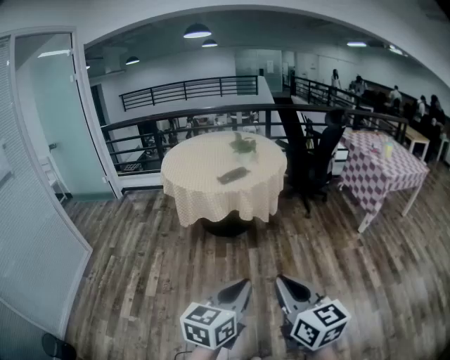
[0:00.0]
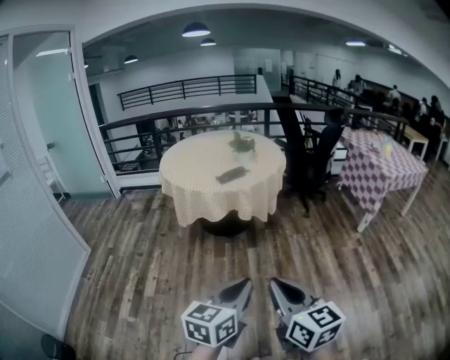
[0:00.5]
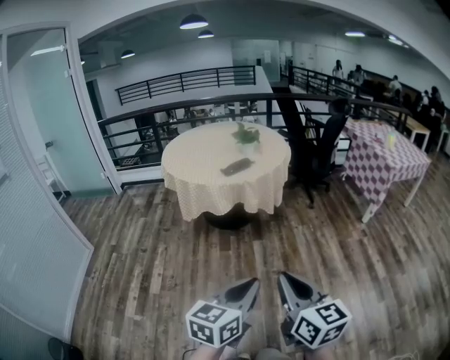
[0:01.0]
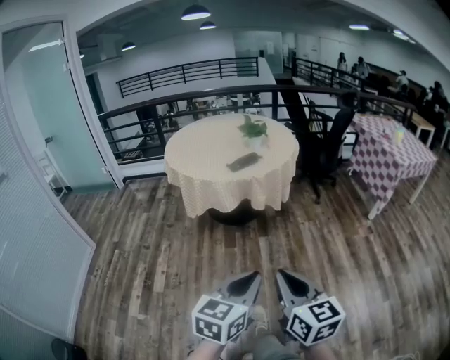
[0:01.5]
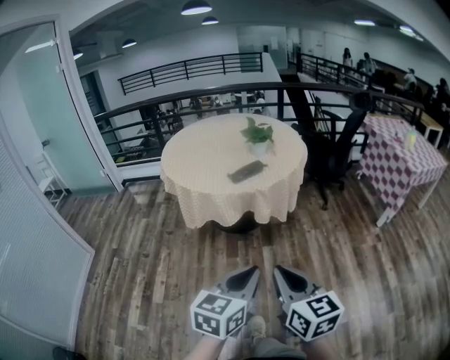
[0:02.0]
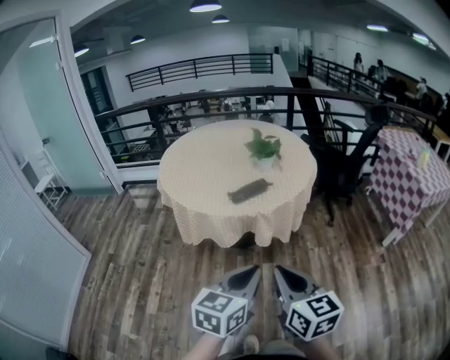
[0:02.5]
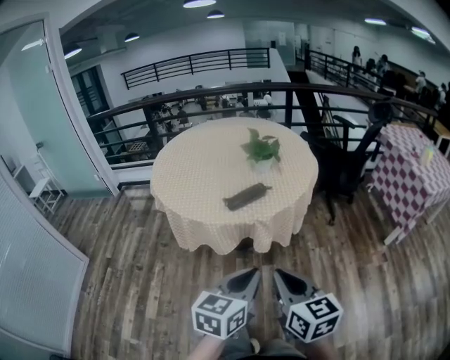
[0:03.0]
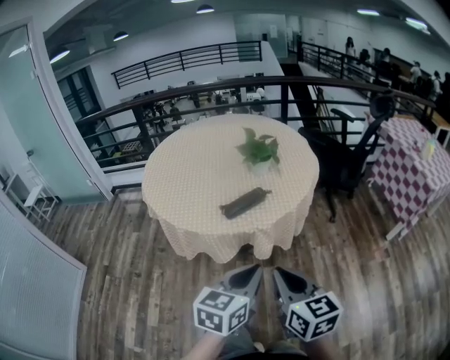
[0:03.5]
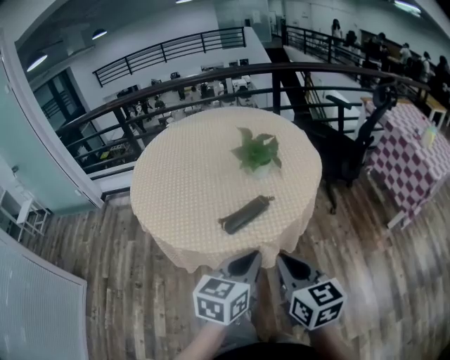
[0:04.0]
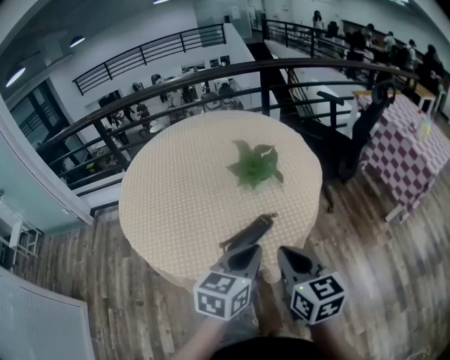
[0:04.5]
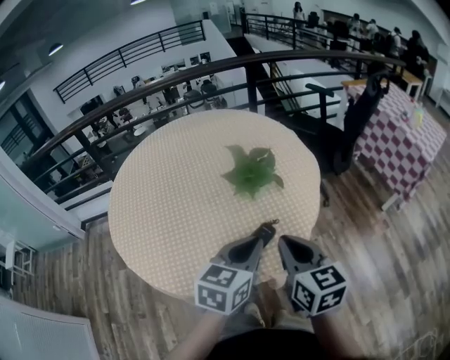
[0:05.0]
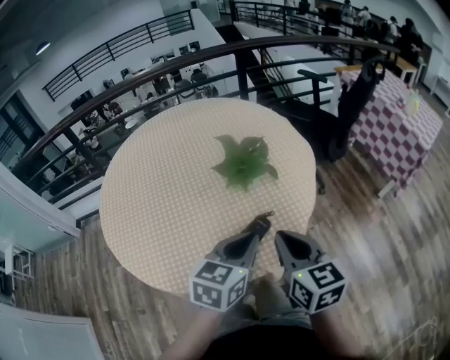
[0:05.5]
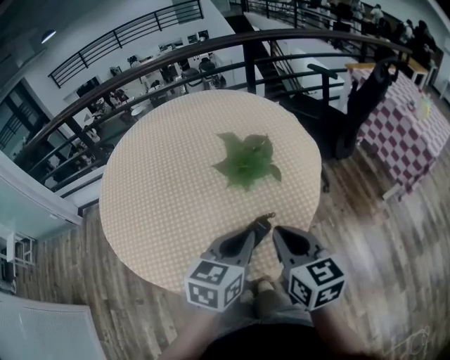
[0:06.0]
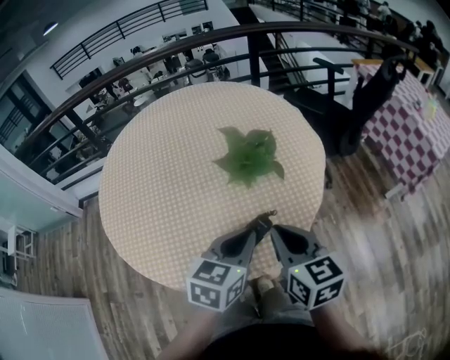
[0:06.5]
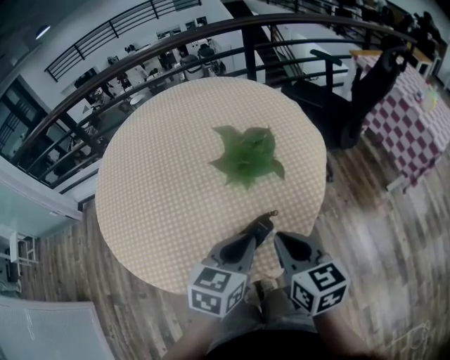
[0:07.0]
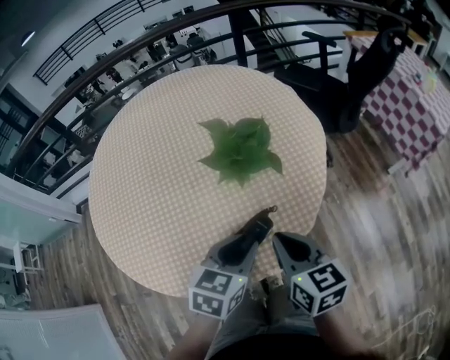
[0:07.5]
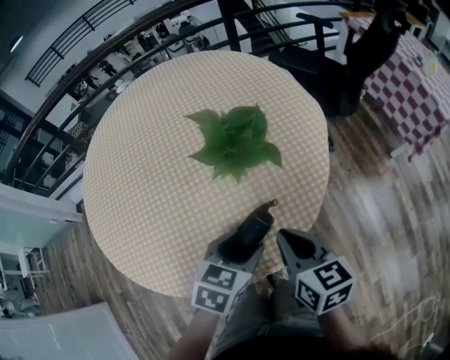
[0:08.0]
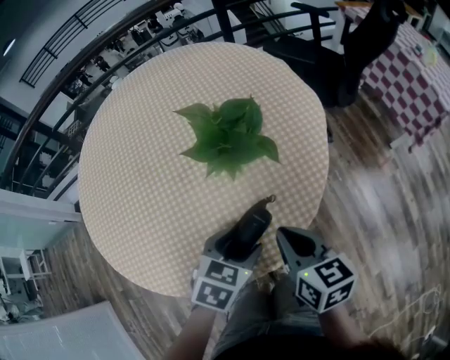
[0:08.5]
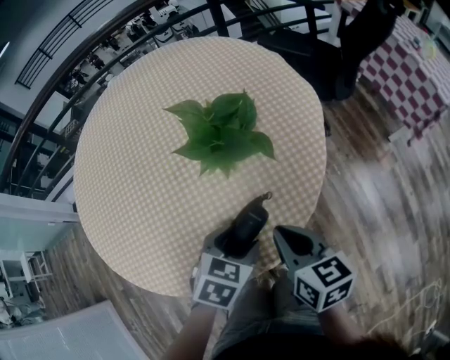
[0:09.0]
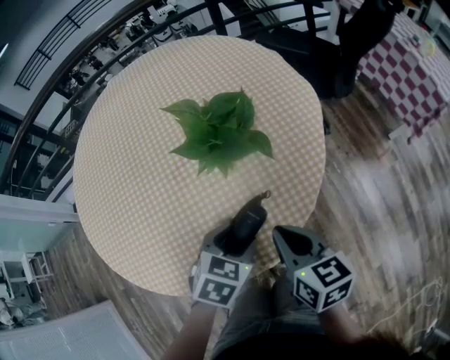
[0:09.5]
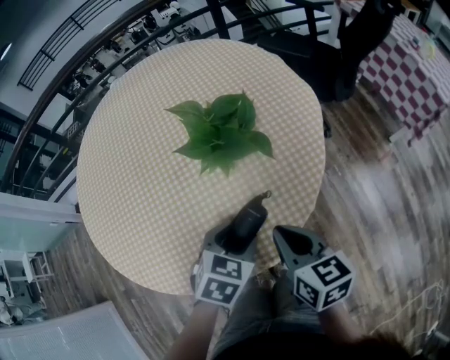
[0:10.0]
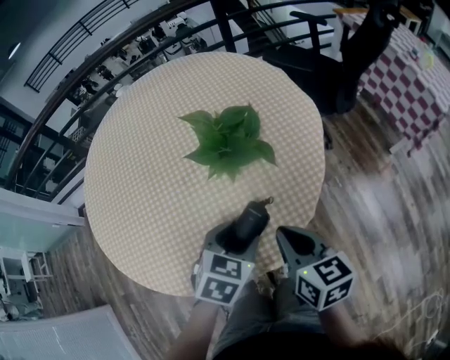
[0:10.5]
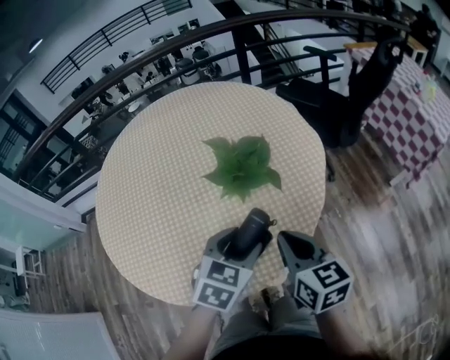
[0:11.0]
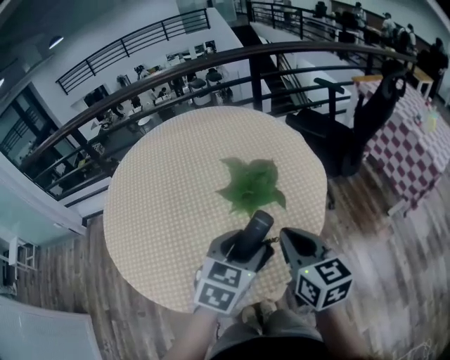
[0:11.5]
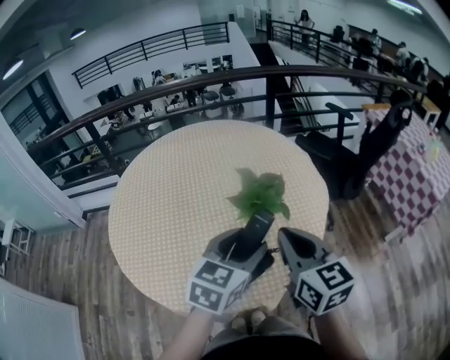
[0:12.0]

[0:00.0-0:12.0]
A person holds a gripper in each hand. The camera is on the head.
0:00.0 to 0:02.0: The left gripper is displaced forward by some 20 cm; the right gripper shifts roughly 25 cm forward and to the left.
0:02.0 to 0:04.0: Both grippers move forward, some 40 cm.
0:04.0 to 0:06.0: Both grippers travel together forward, roughly 20 cm.
0:06.0 to 0:08.0: The grippers both shift downward by some 10 cm. The left gripper changes its angle by about 20 degrees, and opens.
0:08.0 to 0:10.0: There are only small adjustments of the grippers.
0:10.0 to 0:12.0: Both grippers travel together upward, about 20 cm. The left gripper points its fingers roughly 30 degrees further upward; the right gripper changes its angle by some 30 degrees.

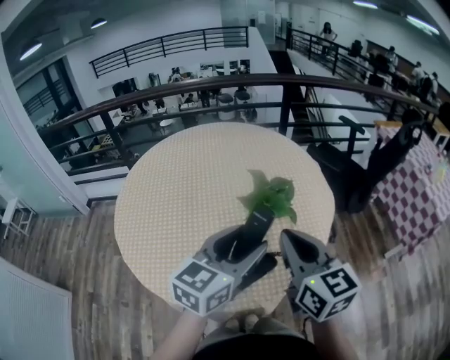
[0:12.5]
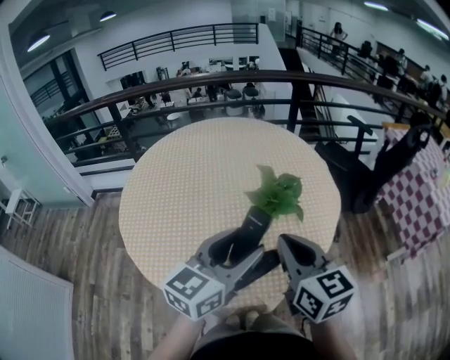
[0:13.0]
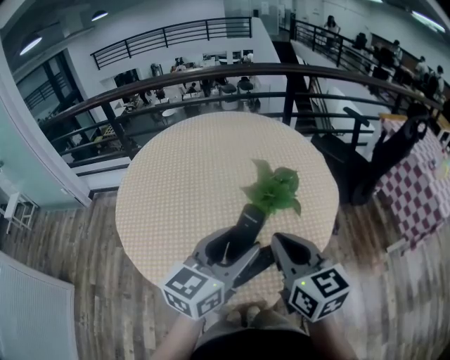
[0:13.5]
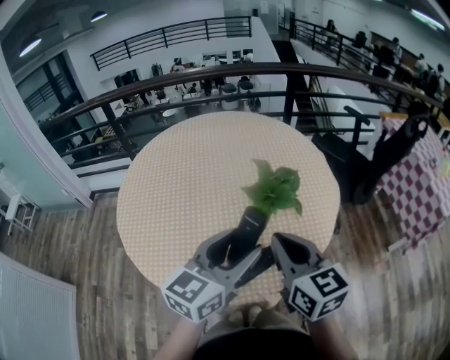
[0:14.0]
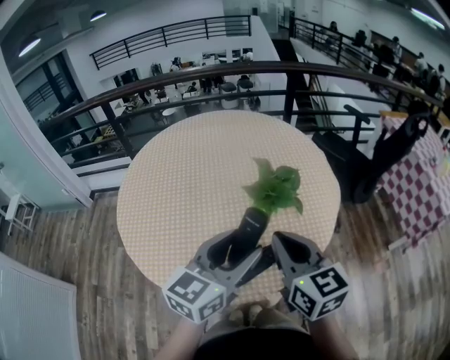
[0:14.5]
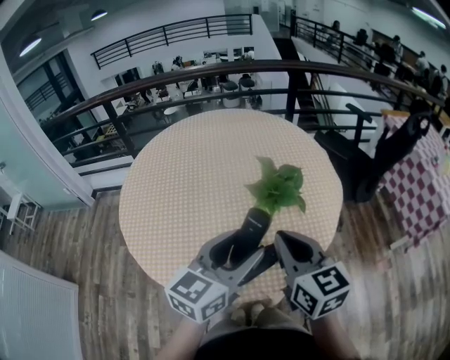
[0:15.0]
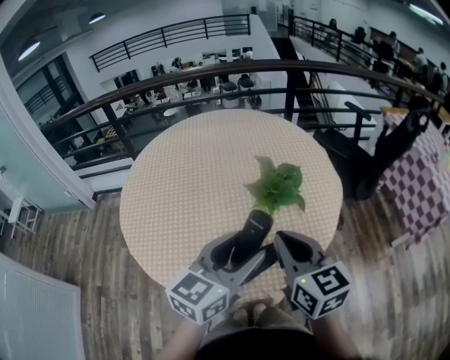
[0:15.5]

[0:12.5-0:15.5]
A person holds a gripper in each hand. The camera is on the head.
0:12.5 to 0:14.0: The grippers move only a little.
0:14.0 to 0:15.5: Both grippers stay put.

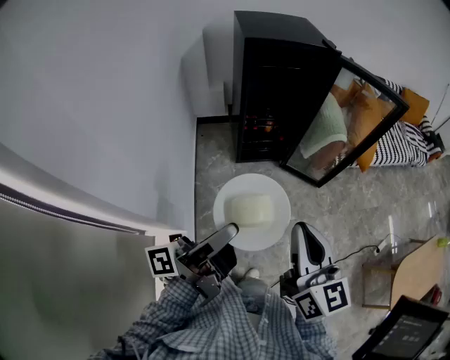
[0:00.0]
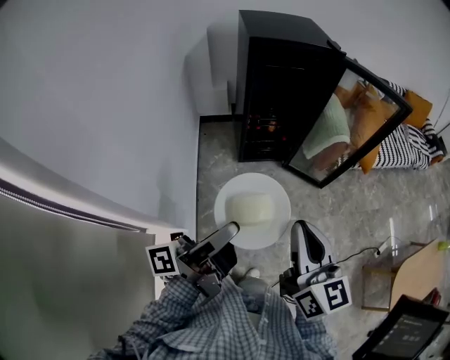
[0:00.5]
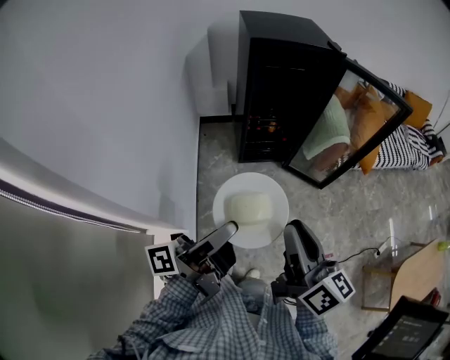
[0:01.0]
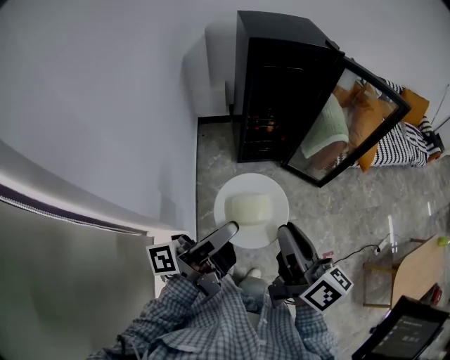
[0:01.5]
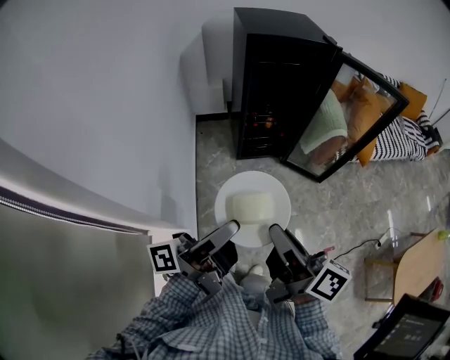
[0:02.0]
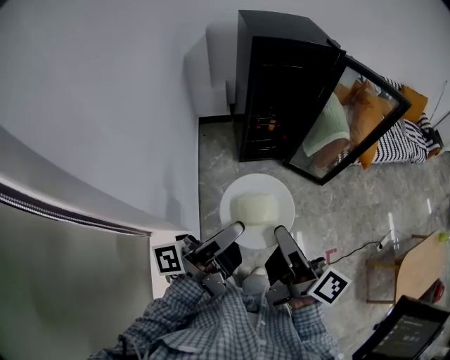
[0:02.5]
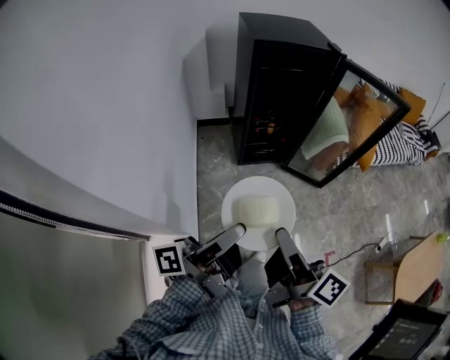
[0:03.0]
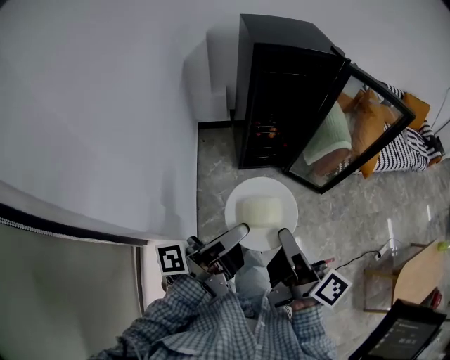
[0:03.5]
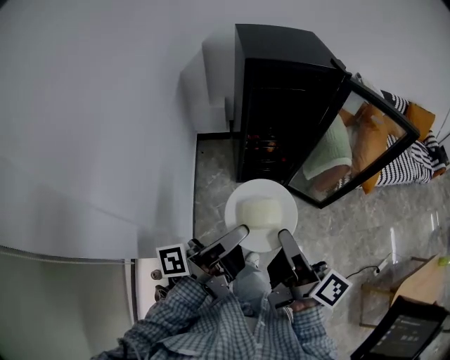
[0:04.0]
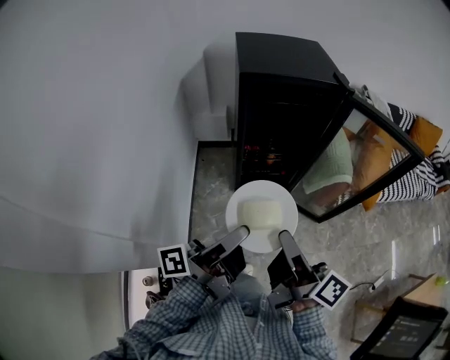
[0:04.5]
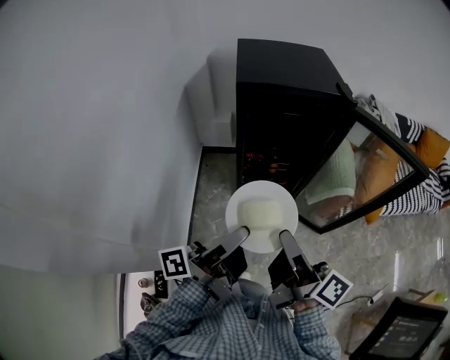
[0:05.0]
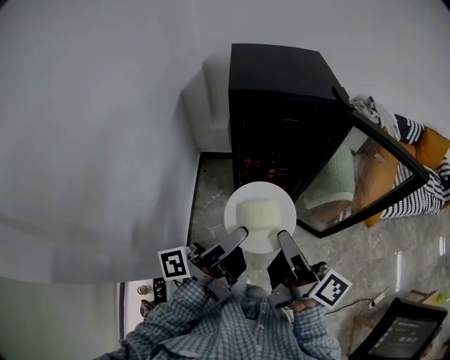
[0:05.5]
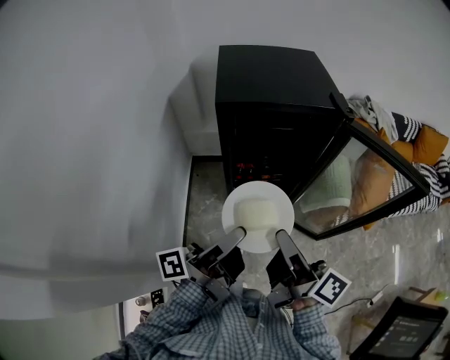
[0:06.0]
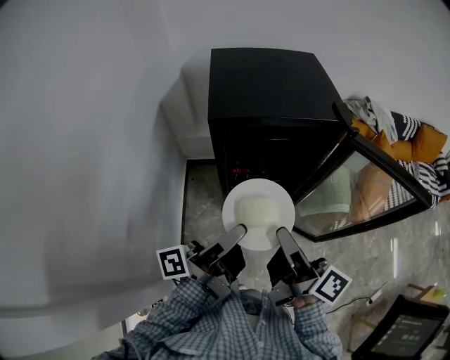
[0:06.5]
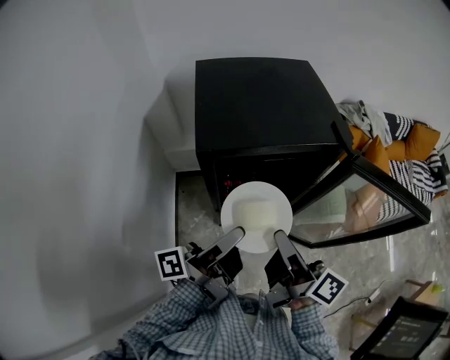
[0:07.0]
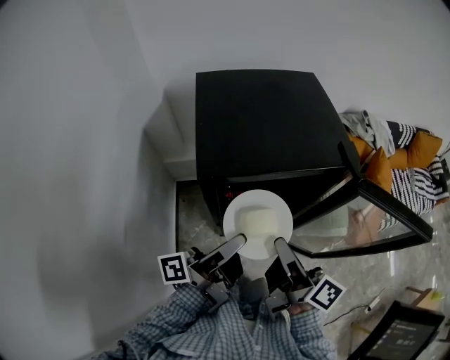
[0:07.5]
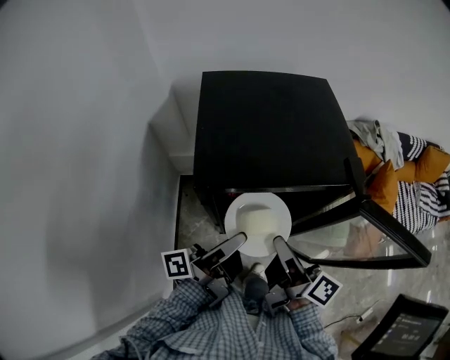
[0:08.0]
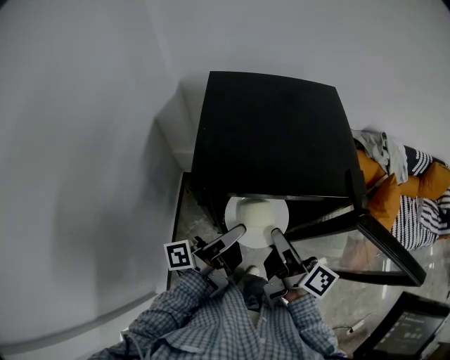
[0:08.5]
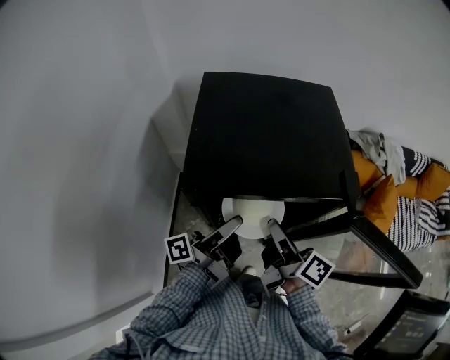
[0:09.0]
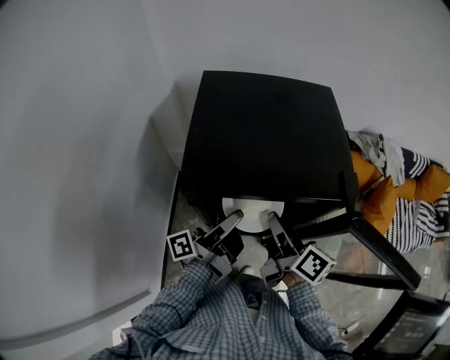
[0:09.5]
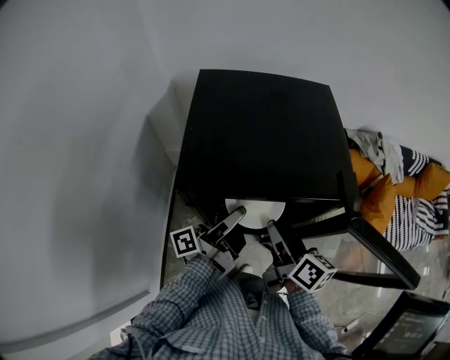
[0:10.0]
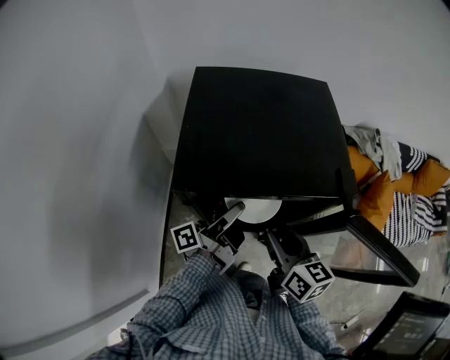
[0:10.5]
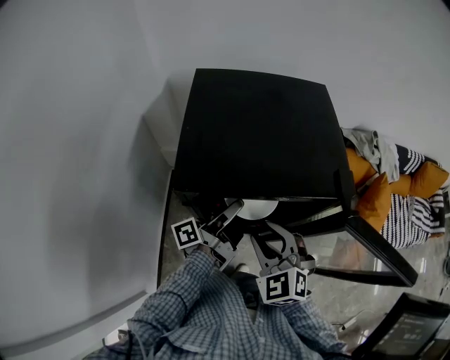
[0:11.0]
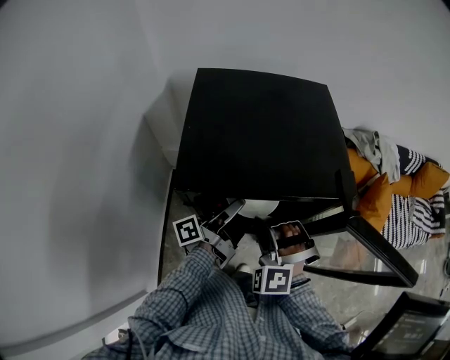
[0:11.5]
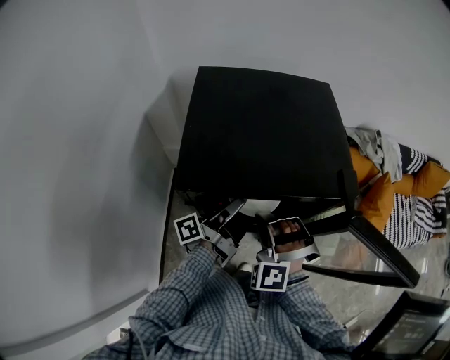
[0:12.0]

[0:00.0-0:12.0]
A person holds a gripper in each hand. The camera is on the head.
0:00.0 to 0:02.0: The right gripper shifts by approximately 5 cm, and twists about 50 degrees clockwise, seen from behind.
0:02.0 to 0:04.0: The right gripper changes place by roughly 10 cm.
0:04.0 to 0:06.0: The right gripper moves roughly 20 cm.
0:06.0 to 0:08.0: The right gripper changes place by some 20 cm.
0:08.0 to 0:10.0: The right gripper shifts by some 10 cm, changes its angle by some 20 degrees, and opens its fingers.
0:10.0 to 0:12.0: The right gripper changes place by some 5 cm, rolls counterclockwise, seen from behind, by about 130 degrees, and closes up.
